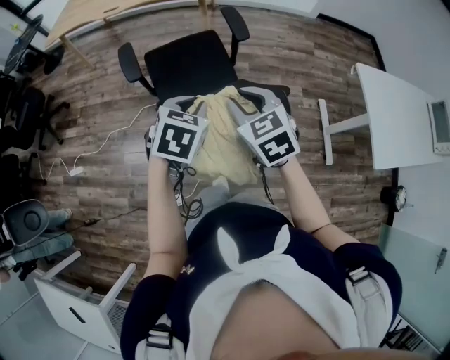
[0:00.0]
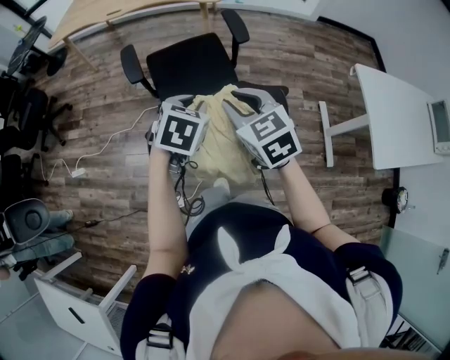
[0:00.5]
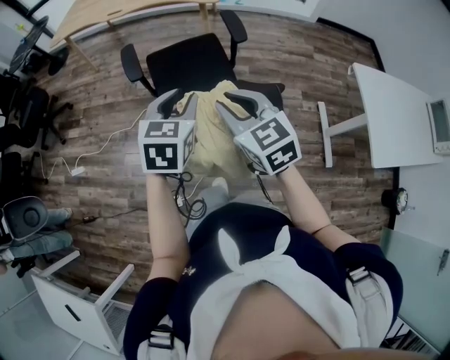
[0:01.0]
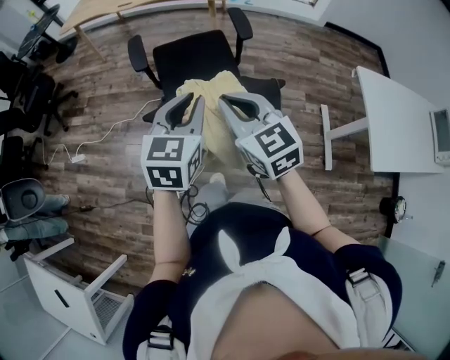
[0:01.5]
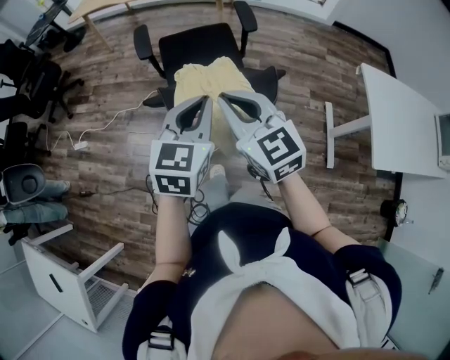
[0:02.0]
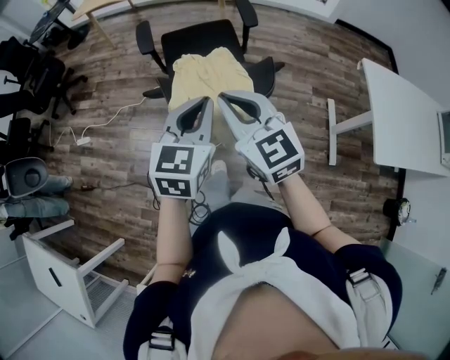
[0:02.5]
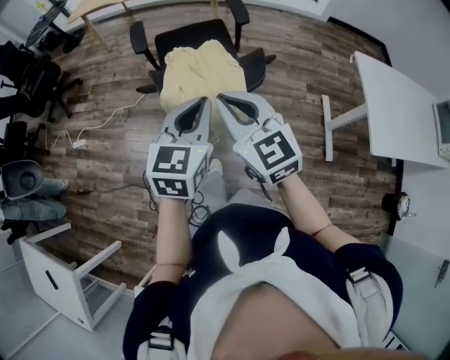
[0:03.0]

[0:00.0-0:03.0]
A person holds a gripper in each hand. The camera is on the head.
0:00.0 to 0:01.5: The grippers both shift backward and upward by about 10 cm. The right gripper rotates some 20 degrees, and closes its fingers; the left gripper swivels about 30 degrees.
0:01.5 to 0:03.0: The two grippers go roughly 15 cm backward.

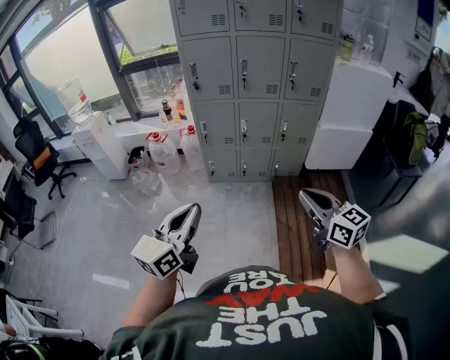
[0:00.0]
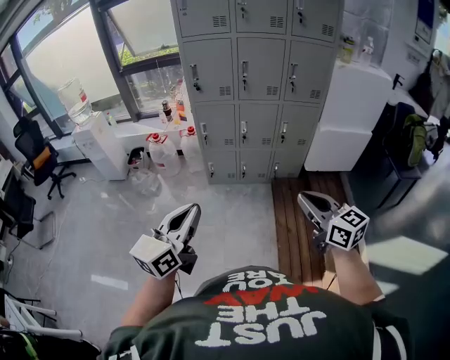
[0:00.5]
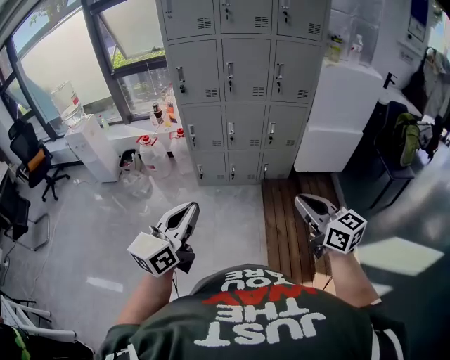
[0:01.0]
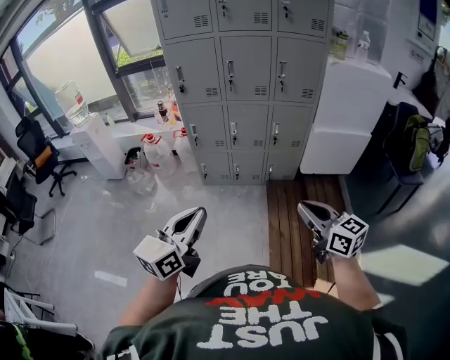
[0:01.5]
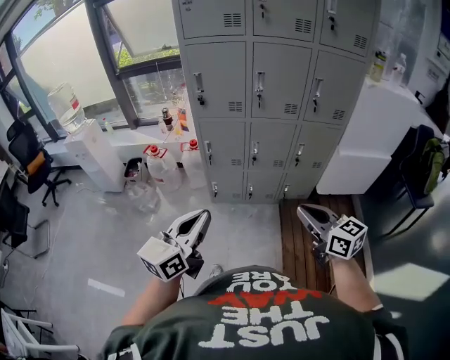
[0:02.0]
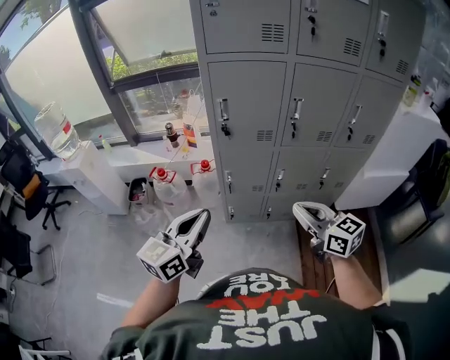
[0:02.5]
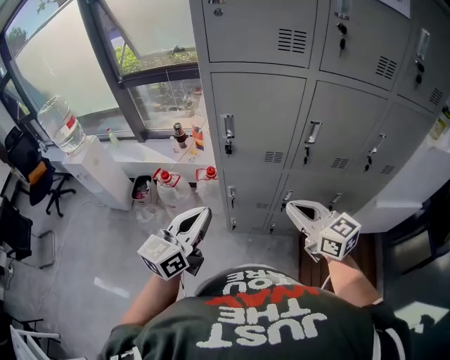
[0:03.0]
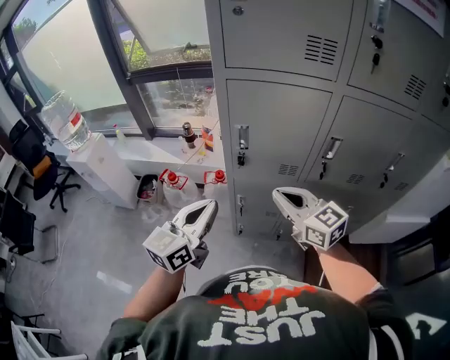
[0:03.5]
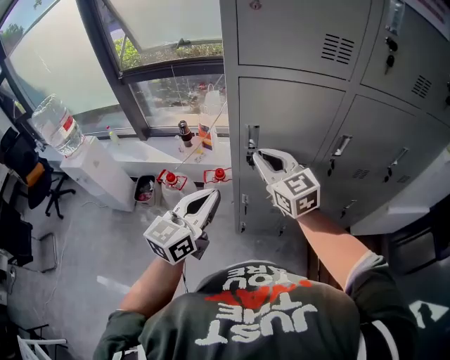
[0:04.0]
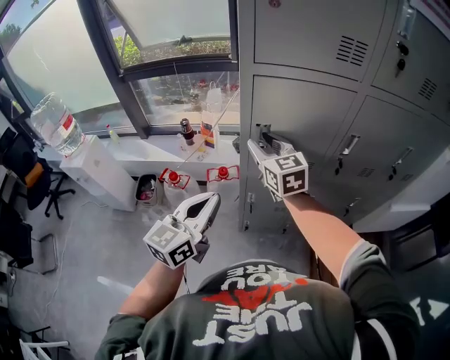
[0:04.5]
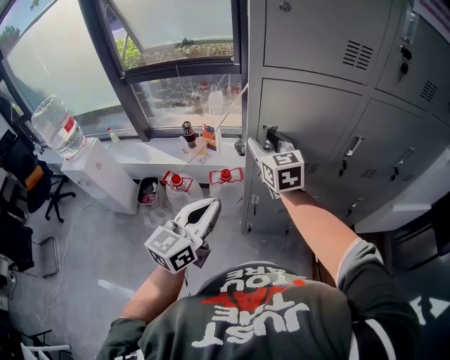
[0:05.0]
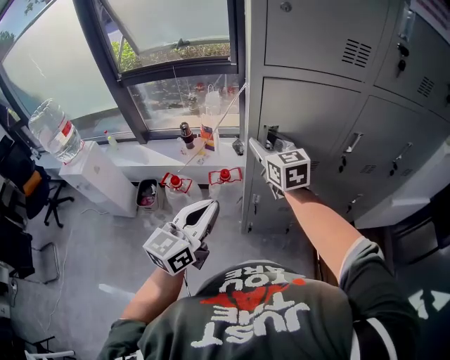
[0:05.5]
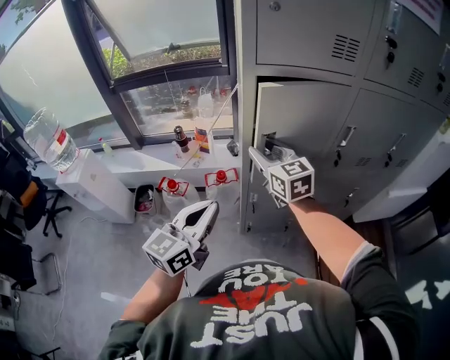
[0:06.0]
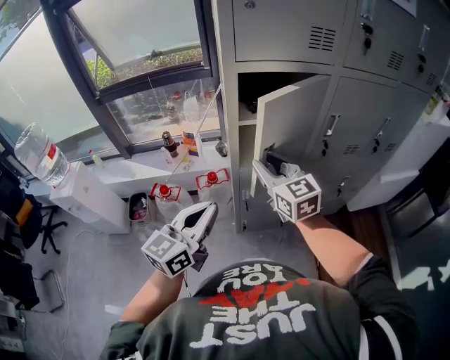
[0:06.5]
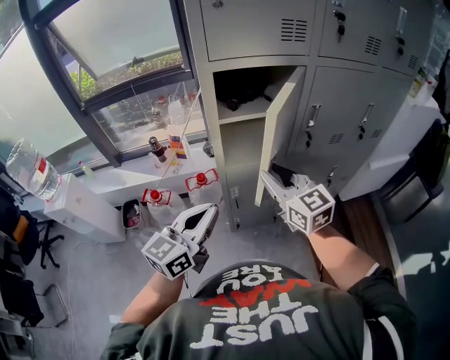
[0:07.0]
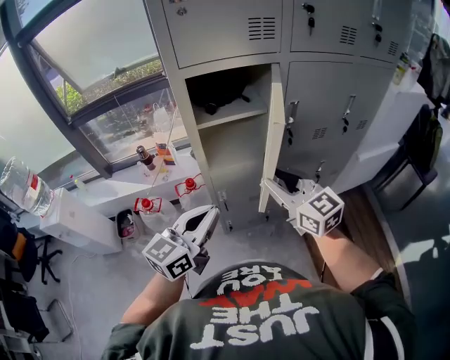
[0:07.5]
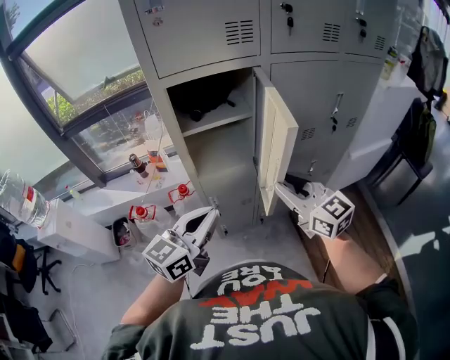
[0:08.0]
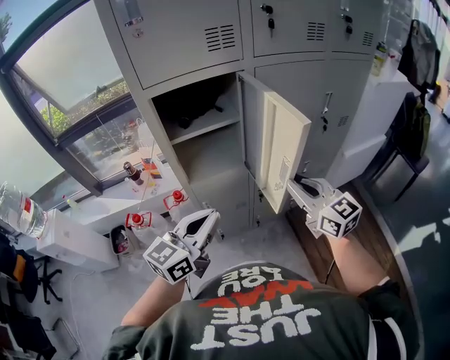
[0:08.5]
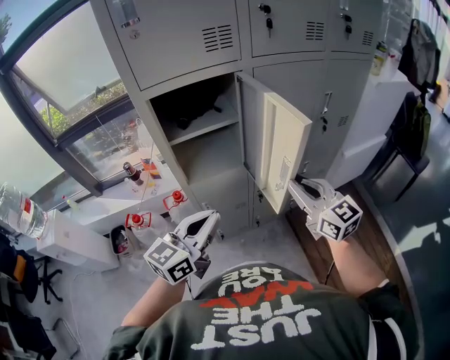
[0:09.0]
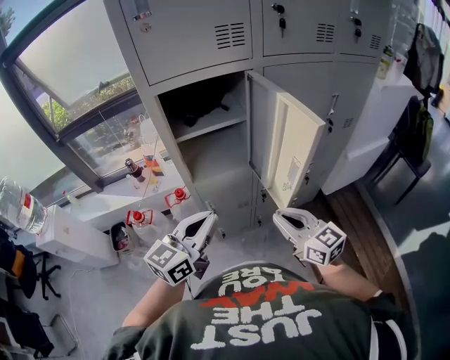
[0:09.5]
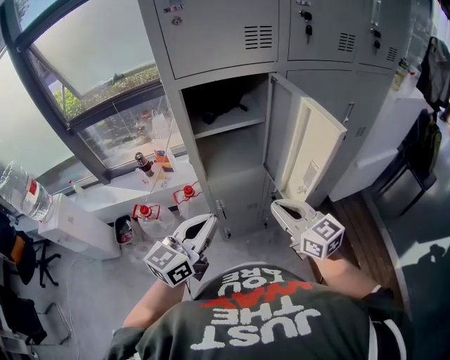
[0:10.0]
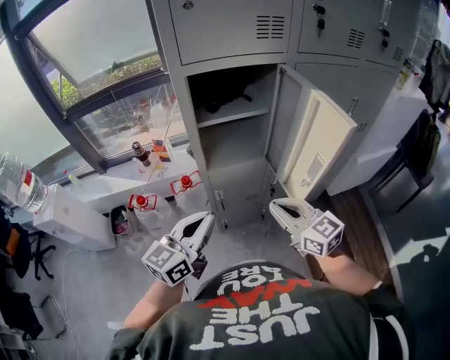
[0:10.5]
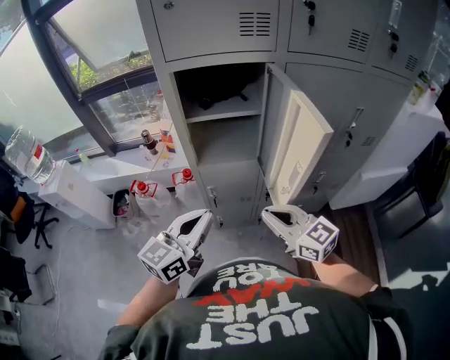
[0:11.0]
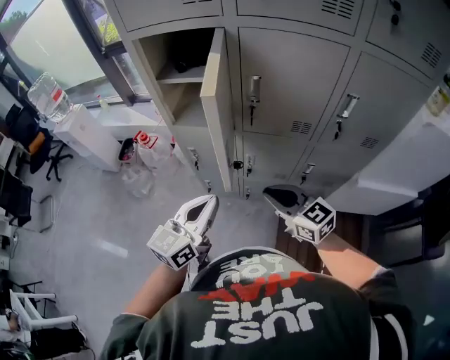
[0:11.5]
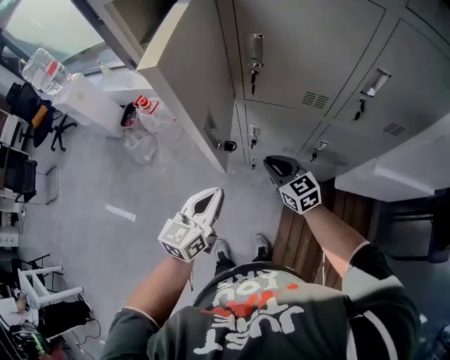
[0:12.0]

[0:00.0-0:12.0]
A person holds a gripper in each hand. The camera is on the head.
0:00.0 to 0:02.0: The two grippers go about 20 cm forward.
0:02.0 to 0:04.0: Both grippers are carried forward and to the left, roughly 60 cm. The right gripper turns by approximately 20 degrees.
0:04.0 to 0:06.0: The right gripper opens its fingers, while the left gripper shifts some 5 cm to the left.
0:06.0 to 0:08.0: The left gripper is displaced to the right by roughly 15 cm, while the right gripper travels to the right and backward by about 30 cm.
0:08.0 to 0:10.0: The right gripper goes to the right and returns, some 10 cm each way, and closes its fingers.
0:10.0 to 0:12.0: The right gripper shifts by about 35 cm, and rotates roughly 30 degrees; the left gripper changes place by about 35 cm, and changes its angle by about 40 degrees.

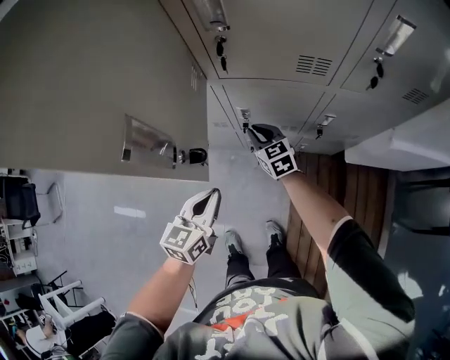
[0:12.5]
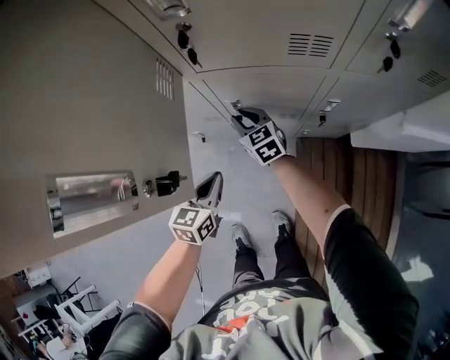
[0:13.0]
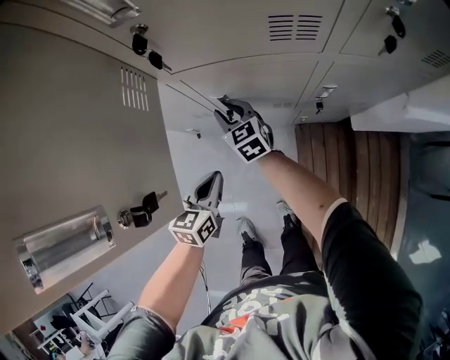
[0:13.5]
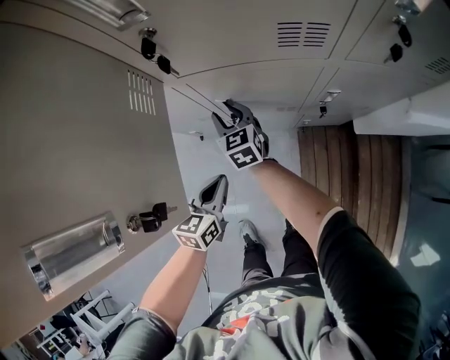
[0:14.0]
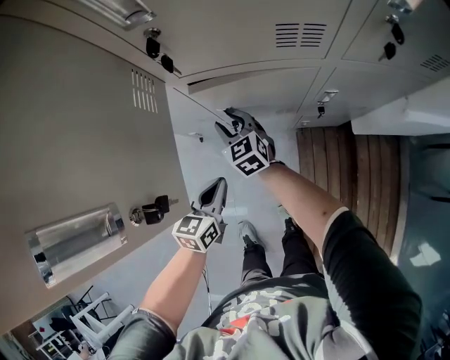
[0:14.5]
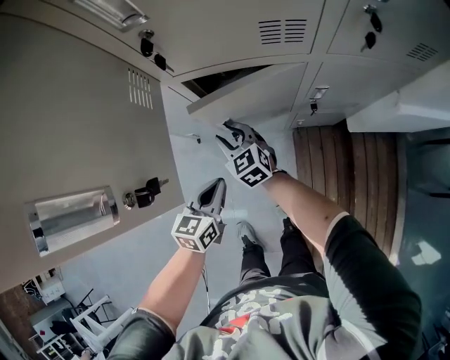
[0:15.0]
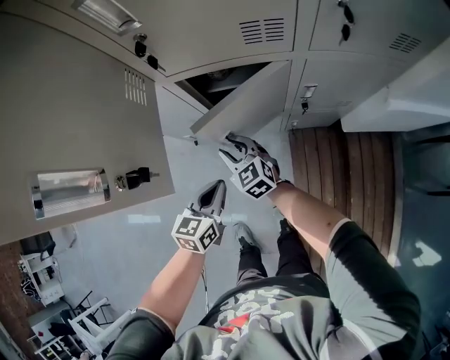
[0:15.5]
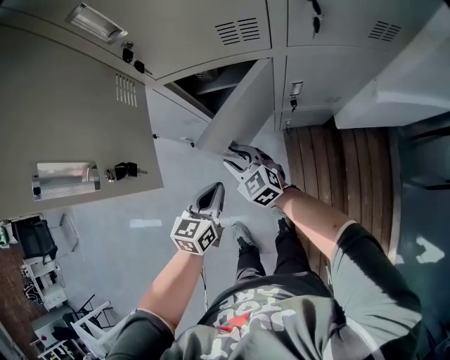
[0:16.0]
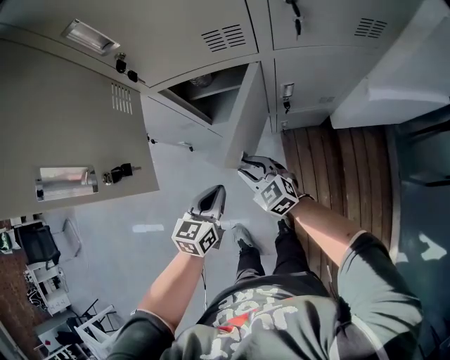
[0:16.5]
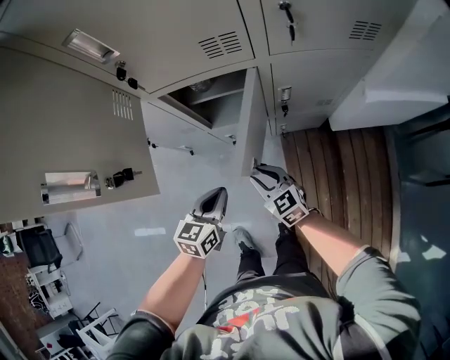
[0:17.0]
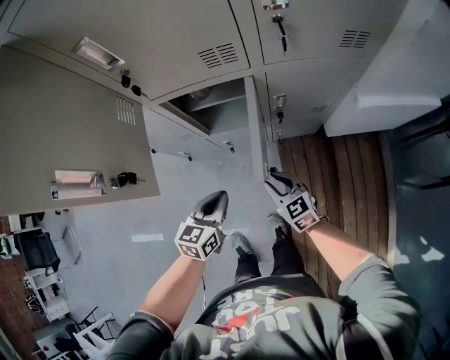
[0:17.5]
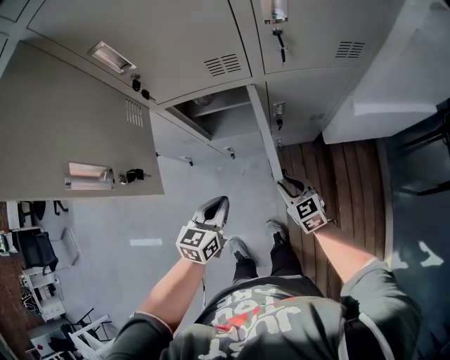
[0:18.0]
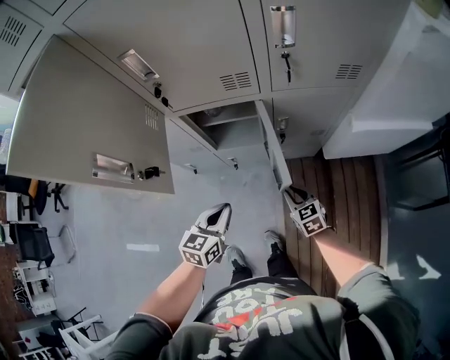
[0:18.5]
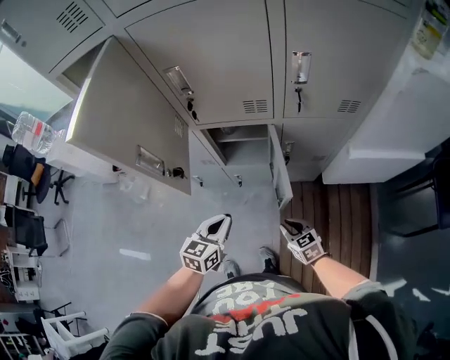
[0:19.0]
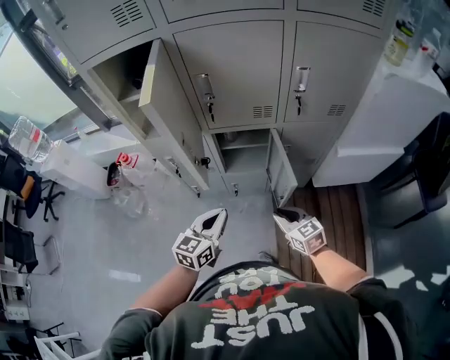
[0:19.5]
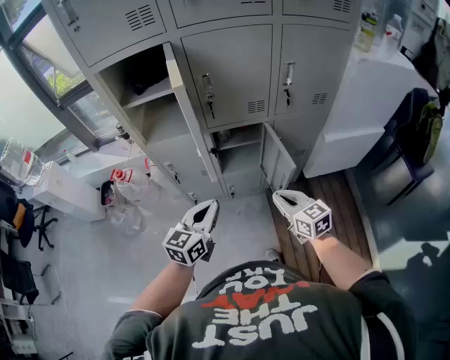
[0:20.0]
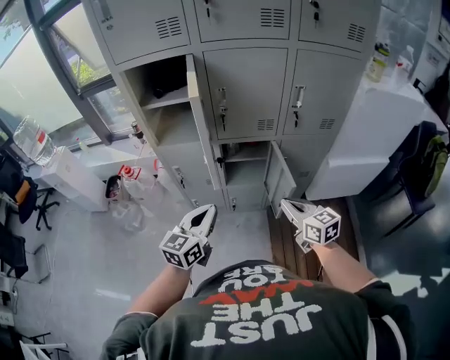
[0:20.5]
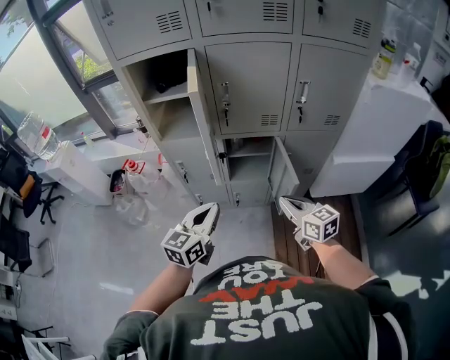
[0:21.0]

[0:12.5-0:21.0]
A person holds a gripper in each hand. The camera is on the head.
0:12.5 to 0:14.5: The right gripper shifts by some 5 cm, and opens its fingers. The left gripper goes approximately 10 cm downward and forward.
0:14.5 to 0:16.5: The right gripper moves backward and to the right, roughly 20 cm, while the left gripper travels to the right and backward by approximately 10 cm.
0:16.5 to 0:19.0: The right gripper shifts approximately 20 cm to the right and backward, and changes its angle by some 20 degrees, while the left gripper travels upward by roughly 10 cm.
0:19.0 to 0:21.0: The right gripper travels upward by about 25 cm, and rotates about 30 degrees. The left gripper shifts roughly 20 cm upward and to the left.

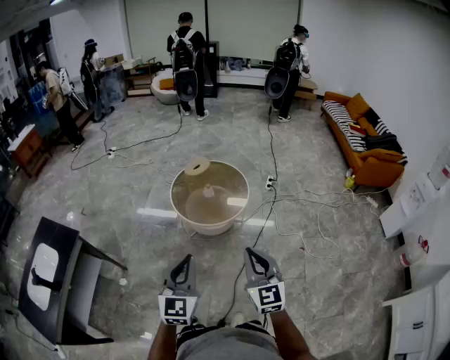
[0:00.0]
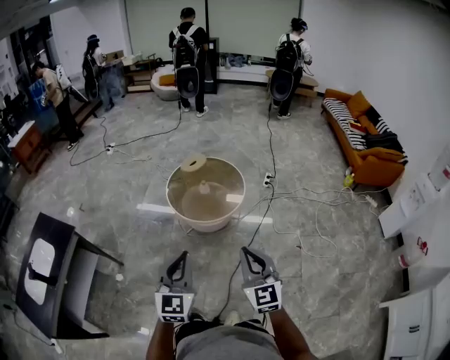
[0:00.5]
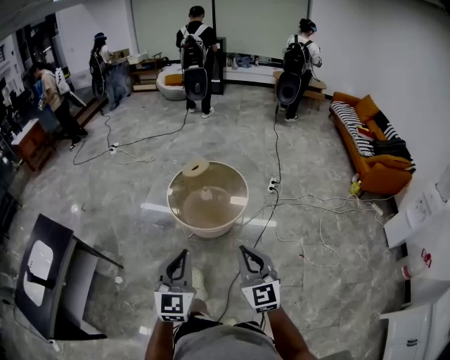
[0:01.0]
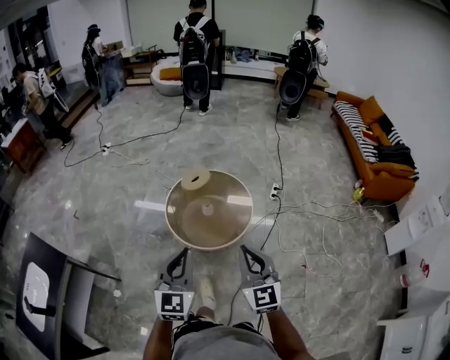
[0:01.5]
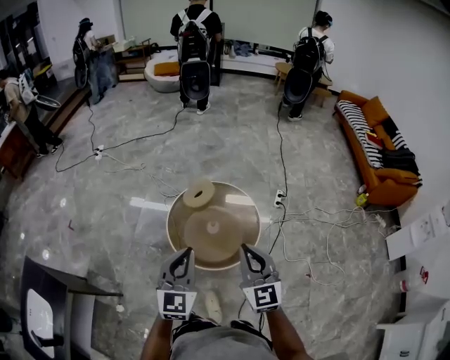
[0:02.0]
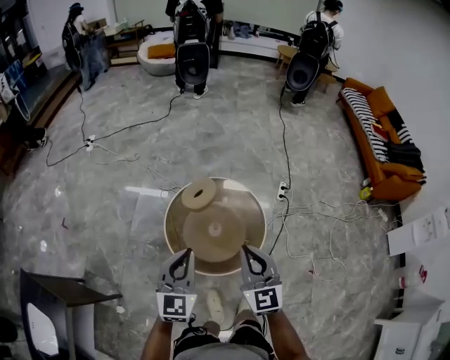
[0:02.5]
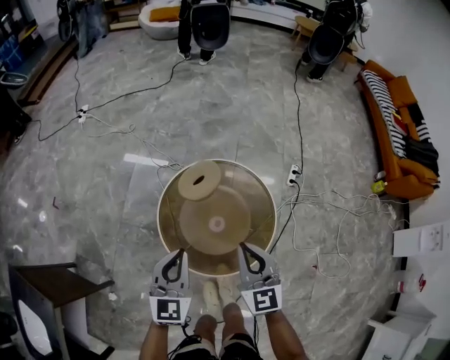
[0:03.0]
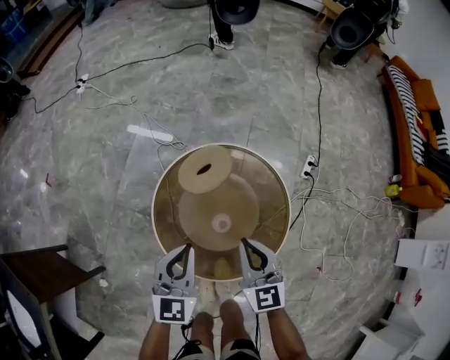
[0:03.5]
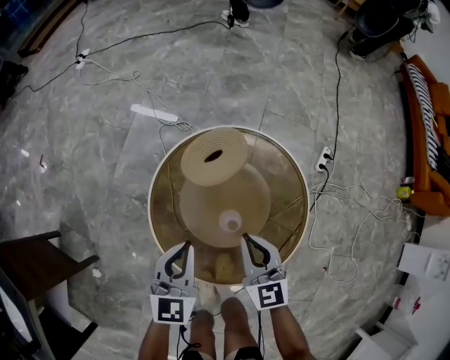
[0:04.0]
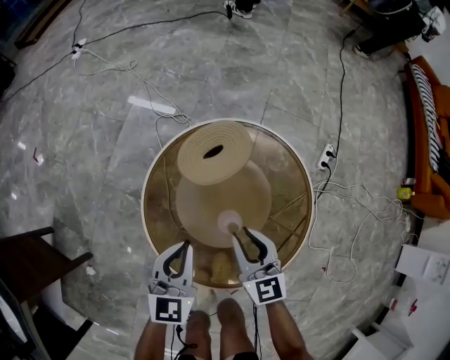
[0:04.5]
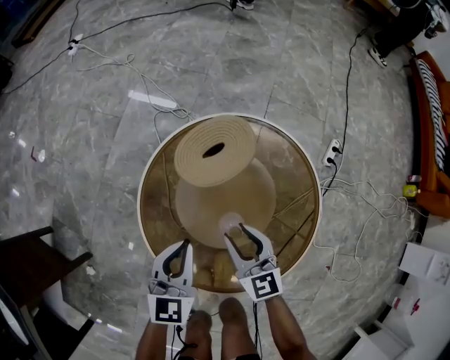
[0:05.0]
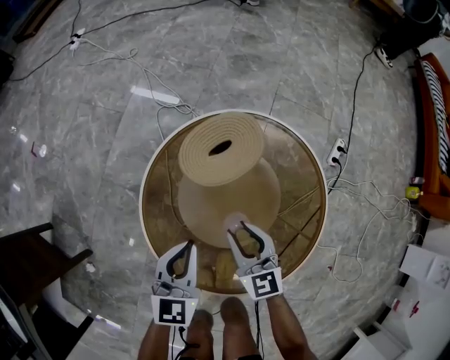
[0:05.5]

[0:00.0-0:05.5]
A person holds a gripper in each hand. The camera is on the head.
0:00.0 to 0:02.0: The pair of grippers is taken forward, about 50 cm.
0:02.0 to 0:03.5: Both grippers move downward and forward, roughly 40 cm. The left gripper turns by roughly 20 degrees.
0:03.5 to 0:05.5: Both grippers move downward, approximately 25 cm. The right gripper opens its fingers.
